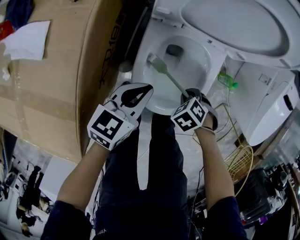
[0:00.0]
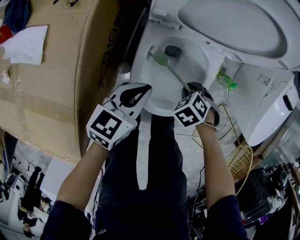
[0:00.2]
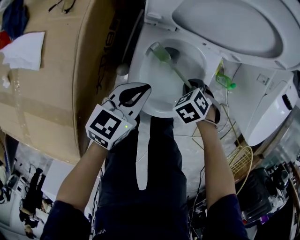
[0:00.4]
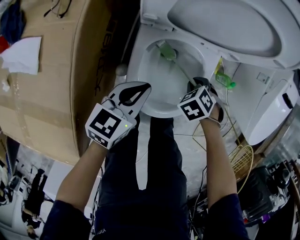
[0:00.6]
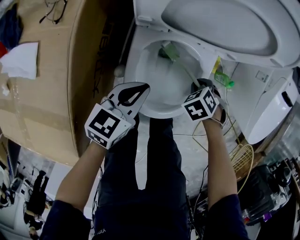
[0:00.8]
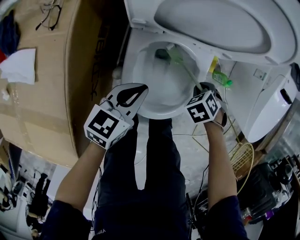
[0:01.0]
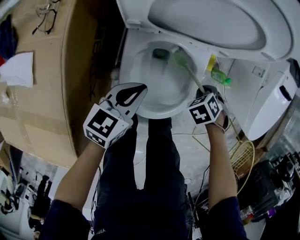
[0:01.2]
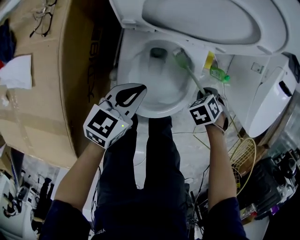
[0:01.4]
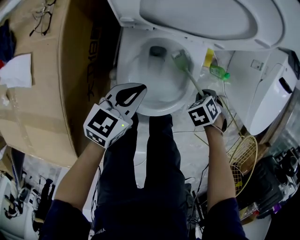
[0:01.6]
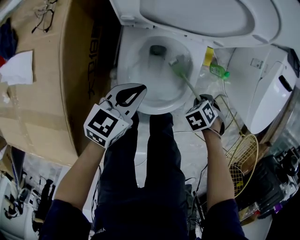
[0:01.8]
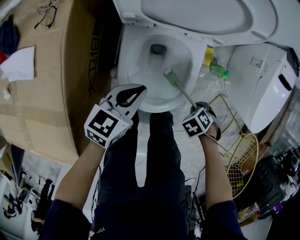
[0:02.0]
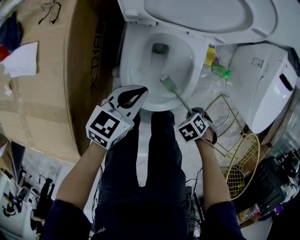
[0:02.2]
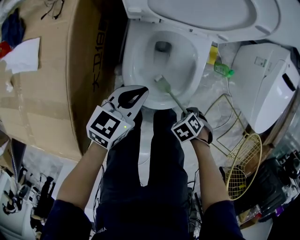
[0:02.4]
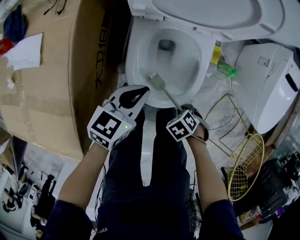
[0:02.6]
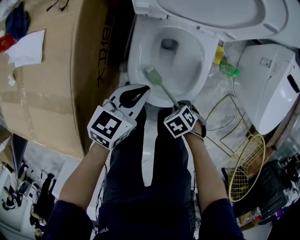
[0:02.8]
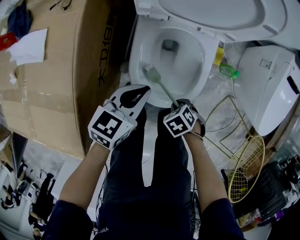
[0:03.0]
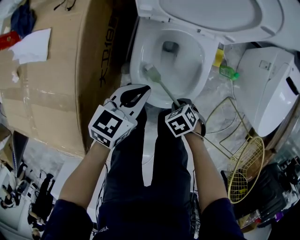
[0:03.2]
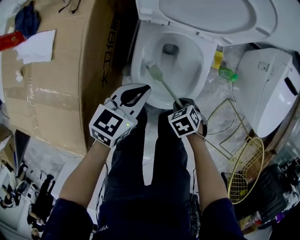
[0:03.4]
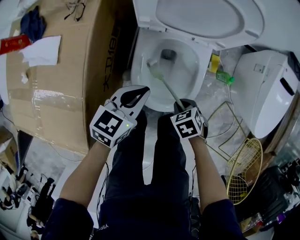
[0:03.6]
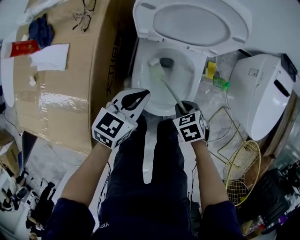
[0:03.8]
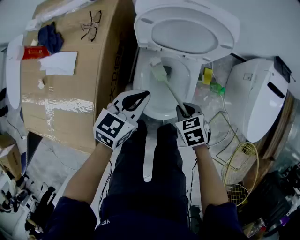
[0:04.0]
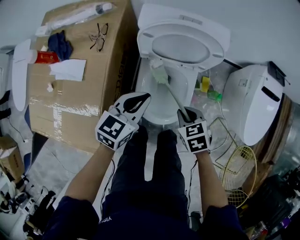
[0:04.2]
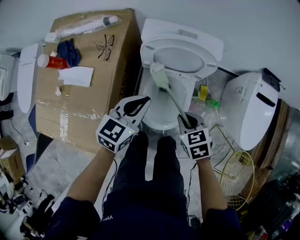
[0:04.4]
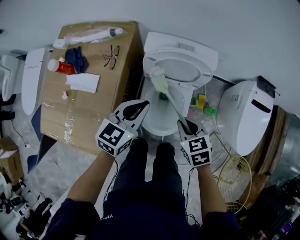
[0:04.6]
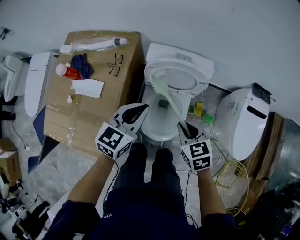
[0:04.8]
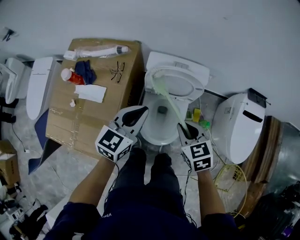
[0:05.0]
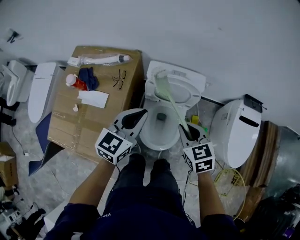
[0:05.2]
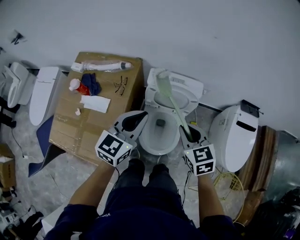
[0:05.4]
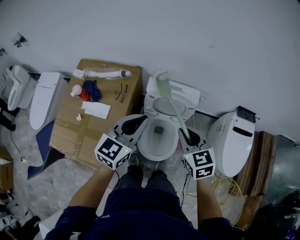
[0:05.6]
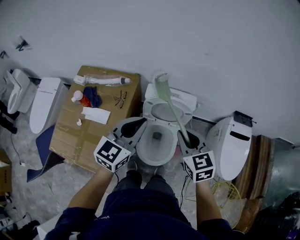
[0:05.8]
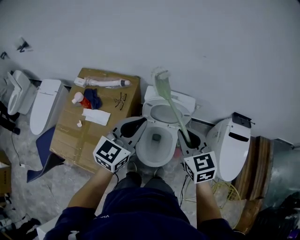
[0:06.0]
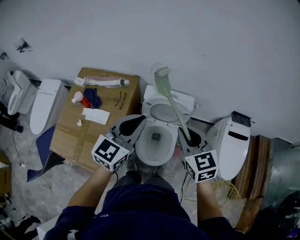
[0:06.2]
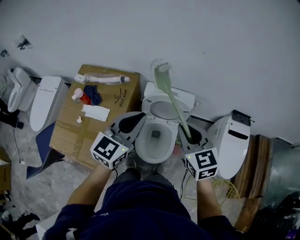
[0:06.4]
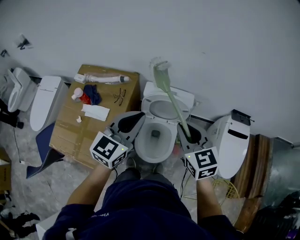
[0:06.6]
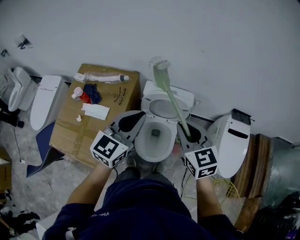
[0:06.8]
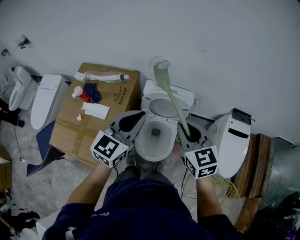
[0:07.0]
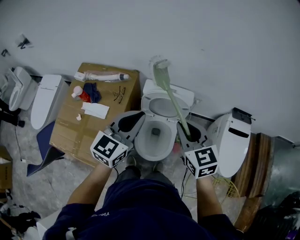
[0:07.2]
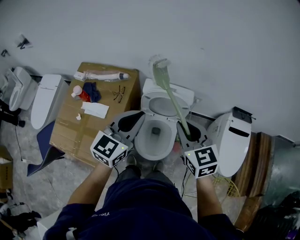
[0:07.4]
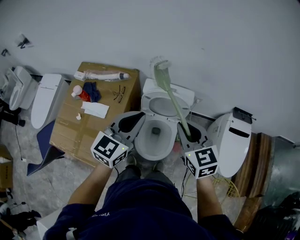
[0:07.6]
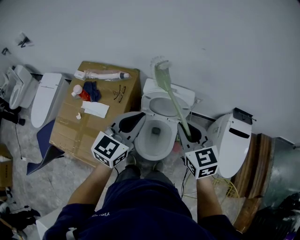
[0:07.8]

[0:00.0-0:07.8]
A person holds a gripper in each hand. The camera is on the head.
0:00.0 to 0:01.6: The right gripper changes place by roughly 15 cm, while the left gripper ends up approximately 5 cm from where it was.
0:01.6 to 0:03.2: The left gripper changes place by approximately 5 cm. The right gripper shifts by about 20 cm.
0:03.2 to 0:04.6: The two grippers go about 30 cm upward. The right gripper swivels about 40 degrees.
0:04.6 to 0:06.2: The grippers both shift upward by approximately 25 cm. The right gripper changes its angle by some 30 degrees, while the left gripper rotates roughly 20 degrees.
0:06.2 to 0:07.8: The grippers make only small movements.

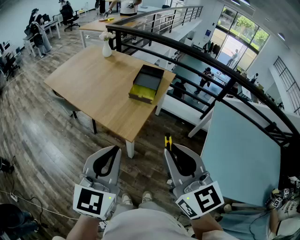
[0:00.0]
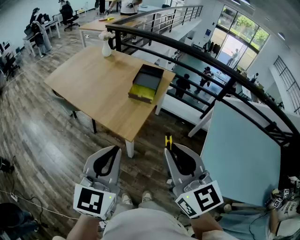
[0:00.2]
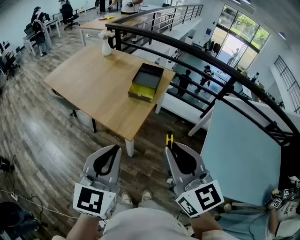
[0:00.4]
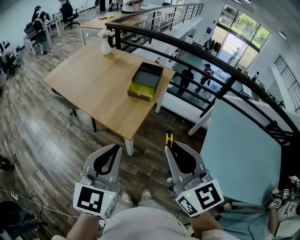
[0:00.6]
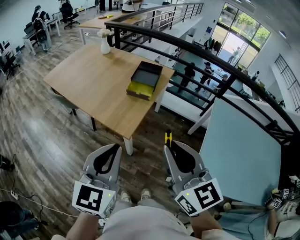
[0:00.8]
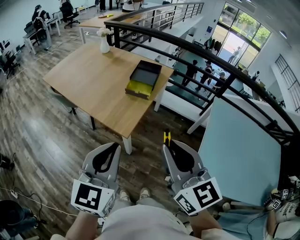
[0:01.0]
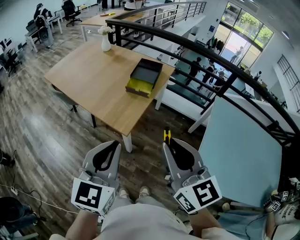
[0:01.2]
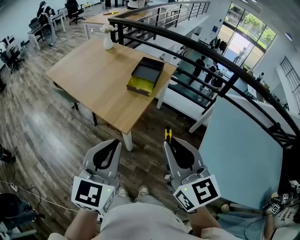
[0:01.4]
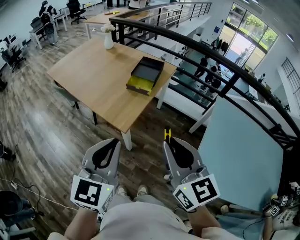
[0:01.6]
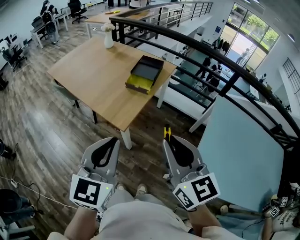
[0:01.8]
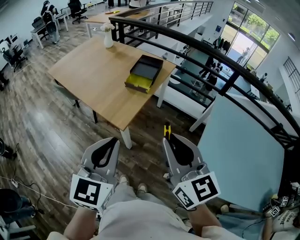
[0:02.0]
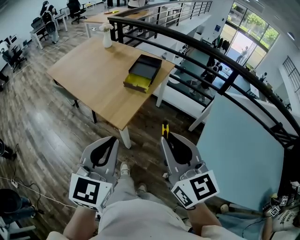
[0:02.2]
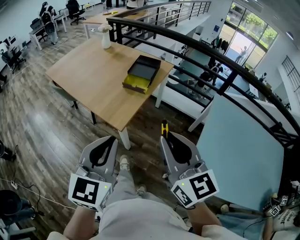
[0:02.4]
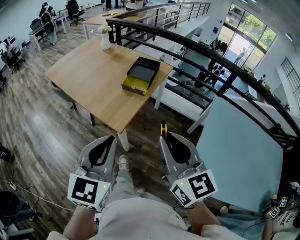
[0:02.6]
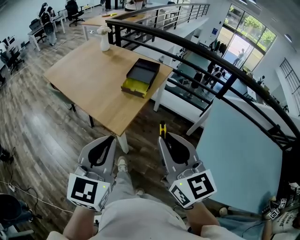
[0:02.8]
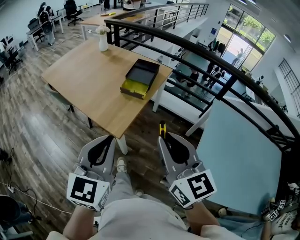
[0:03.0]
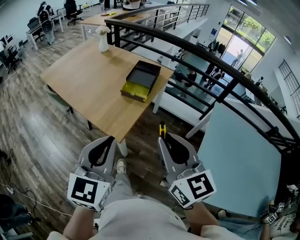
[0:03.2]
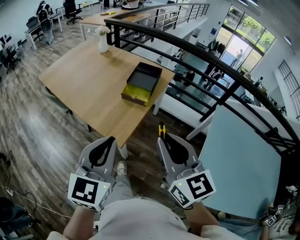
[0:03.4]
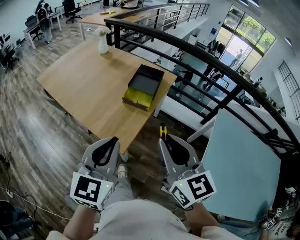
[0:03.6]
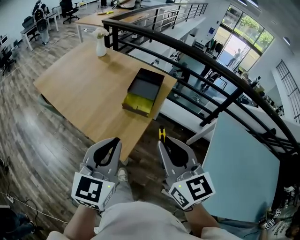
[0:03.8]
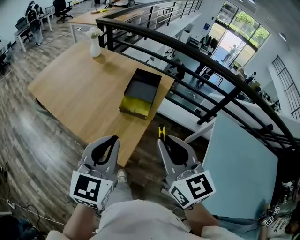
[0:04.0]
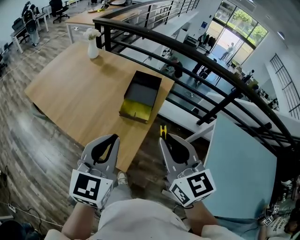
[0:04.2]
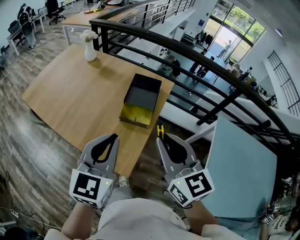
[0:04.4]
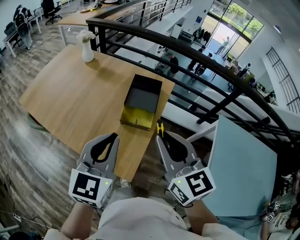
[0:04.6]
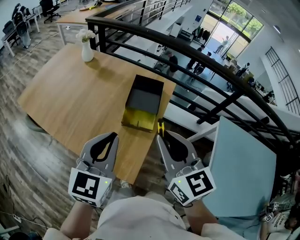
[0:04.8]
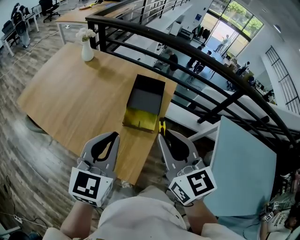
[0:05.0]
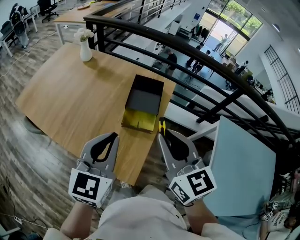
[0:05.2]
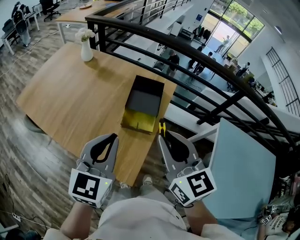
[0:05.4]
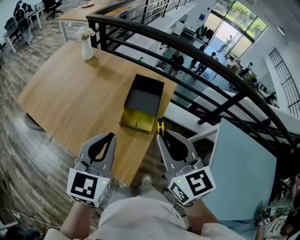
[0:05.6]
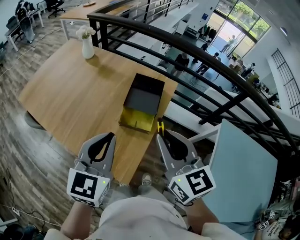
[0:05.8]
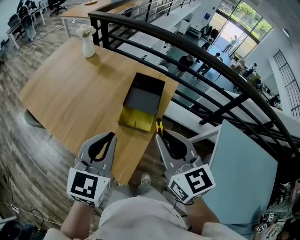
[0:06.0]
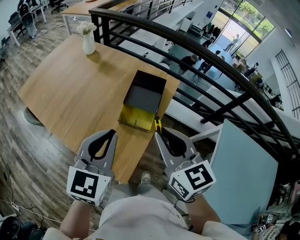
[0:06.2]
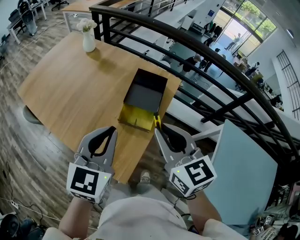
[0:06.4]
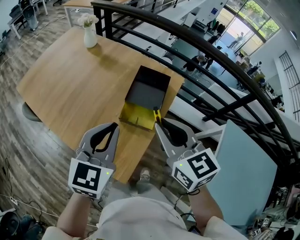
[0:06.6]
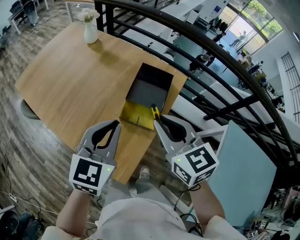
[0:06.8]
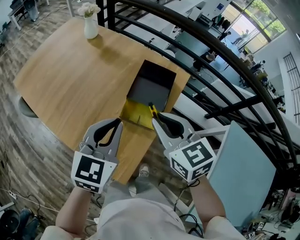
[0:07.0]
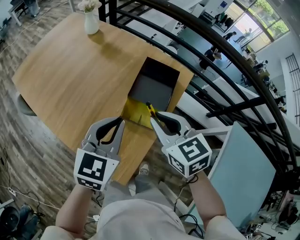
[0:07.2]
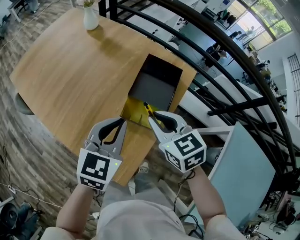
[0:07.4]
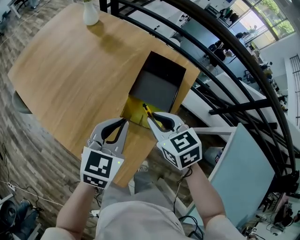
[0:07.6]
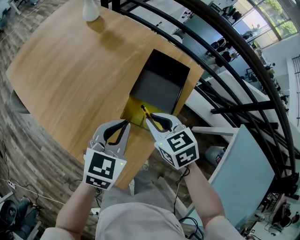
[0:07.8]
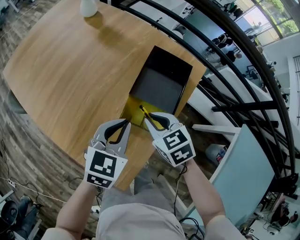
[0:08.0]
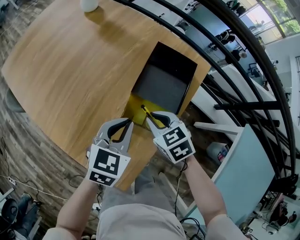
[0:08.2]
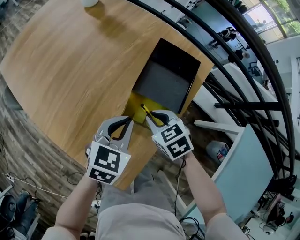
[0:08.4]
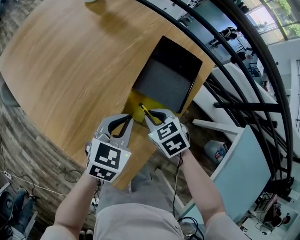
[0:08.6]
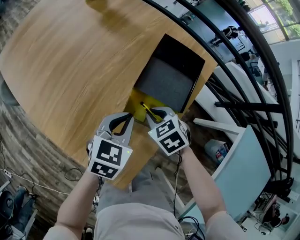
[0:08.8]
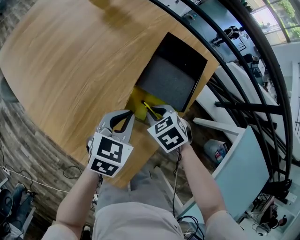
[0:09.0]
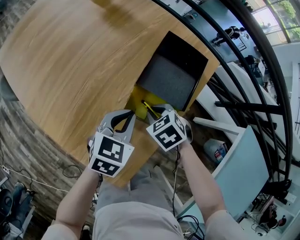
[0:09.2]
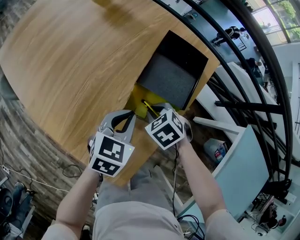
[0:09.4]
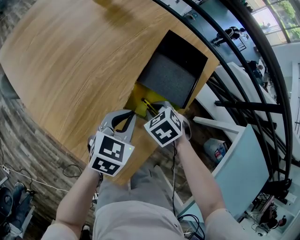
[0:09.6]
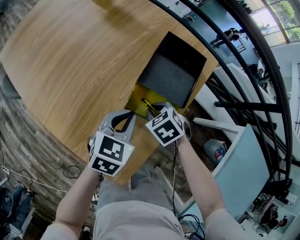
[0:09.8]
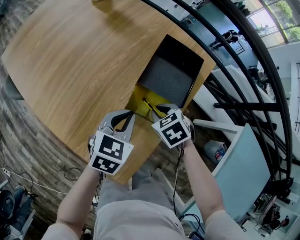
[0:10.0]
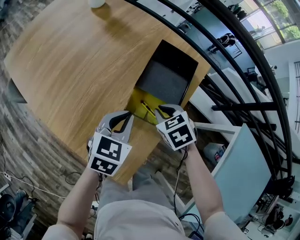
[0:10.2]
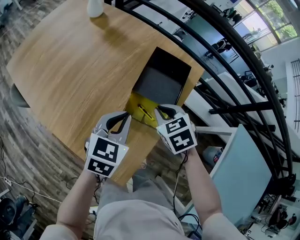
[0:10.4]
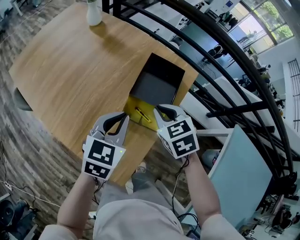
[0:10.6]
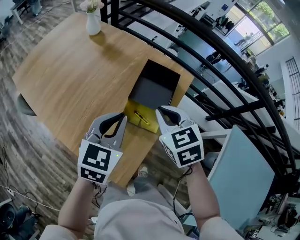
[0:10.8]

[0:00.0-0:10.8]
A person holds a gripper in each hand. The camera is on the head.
0:00.0 to 0:01.6: Both grippers travel together to the right, some 10 cm.
0:01.6 to 0:03.0: The grippers stay close to where they were, moving slightly.
0:03.0 to 0:04.6: The grippers both shift forward by approximately 35 cm.
0:04.6 to 0:06.2: The grippers both shift forward by some 5 cm.
0:06.2 to 0:07.8: Both grippers move downward and forward, roughly 30 cm. The right gripper turns by some 30 degrees.
0:07.8 to 0:09.2: Both grippers move downward, roughly 15 cm. The right gripper rotates about 30 degrees.
0:09.2 to 0:10.8: Both grippers travel together upward, roughly 25 cm. The right gripper swivels some 30 degrees.

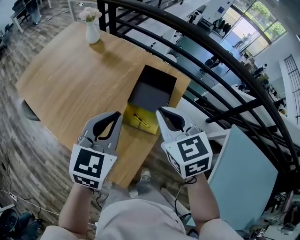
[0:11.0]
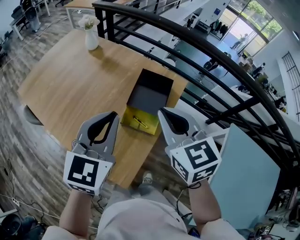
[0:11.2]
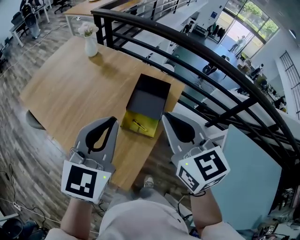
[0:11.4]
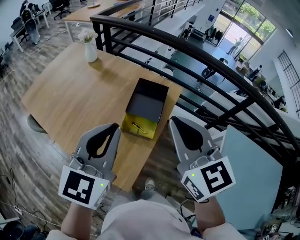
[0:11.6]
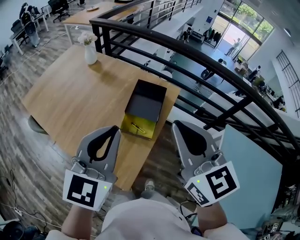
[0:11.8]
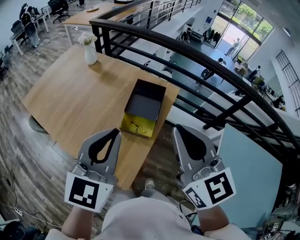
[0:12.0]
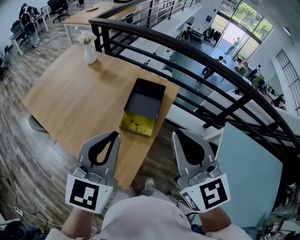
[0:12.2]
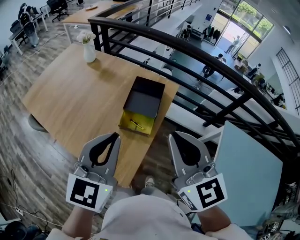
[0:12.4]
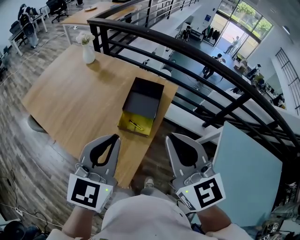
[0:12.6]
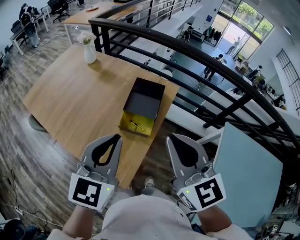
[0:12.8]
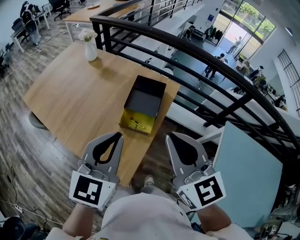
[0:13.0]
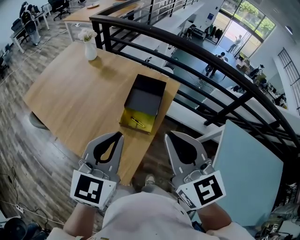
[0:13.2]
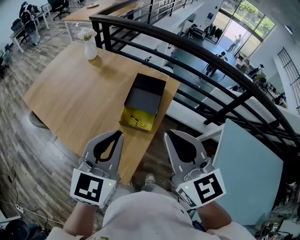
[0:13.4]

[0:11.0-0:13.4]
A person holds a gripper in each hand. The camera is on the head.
0:11.0 to 0:12.2: The right gripper travels upward and backward by about 20 cm, and changes its angle by roughly 30 degrees, while the left gripper moves backward and upward, some 15 cm.
0:12.2 to 0:13.4: The grippers stay close to where they were, moving slightly.

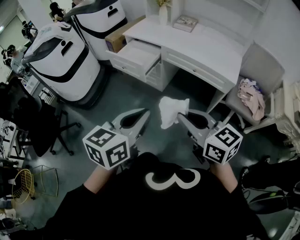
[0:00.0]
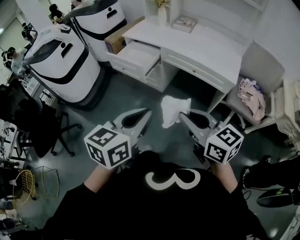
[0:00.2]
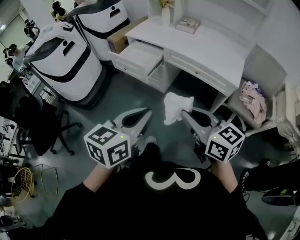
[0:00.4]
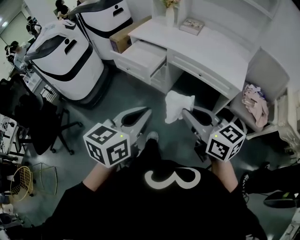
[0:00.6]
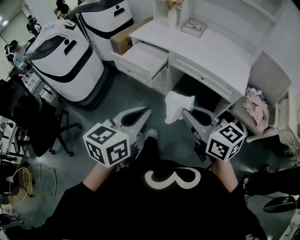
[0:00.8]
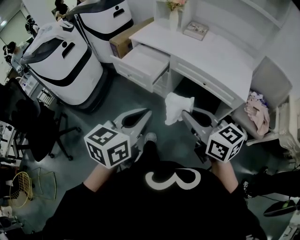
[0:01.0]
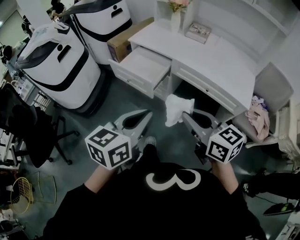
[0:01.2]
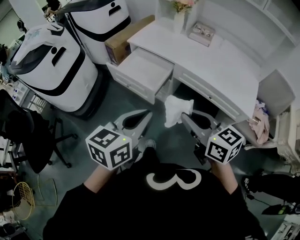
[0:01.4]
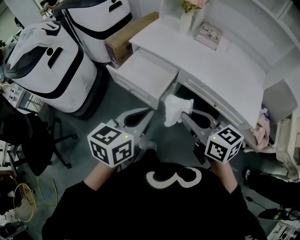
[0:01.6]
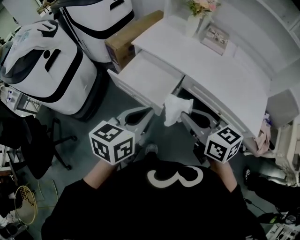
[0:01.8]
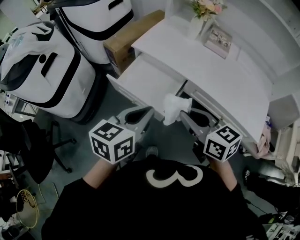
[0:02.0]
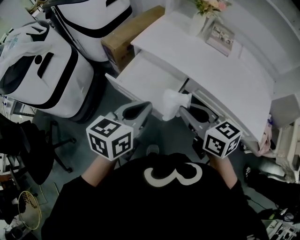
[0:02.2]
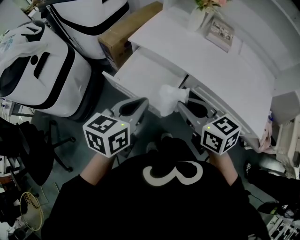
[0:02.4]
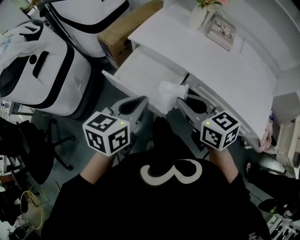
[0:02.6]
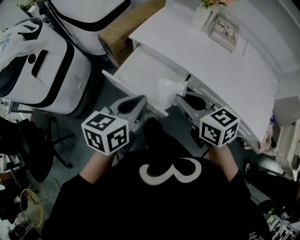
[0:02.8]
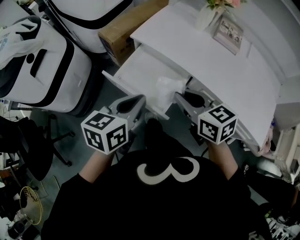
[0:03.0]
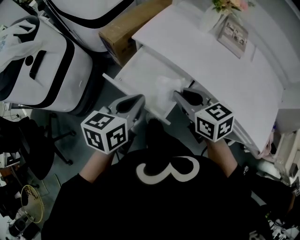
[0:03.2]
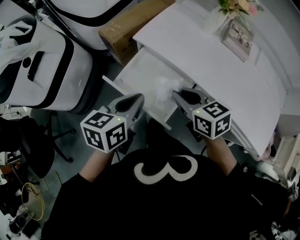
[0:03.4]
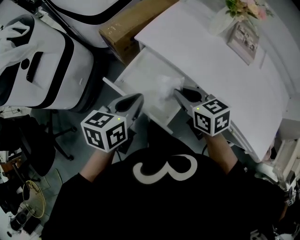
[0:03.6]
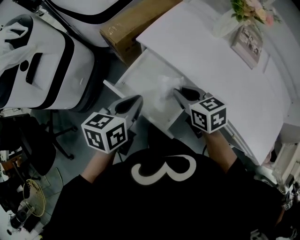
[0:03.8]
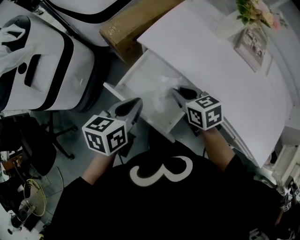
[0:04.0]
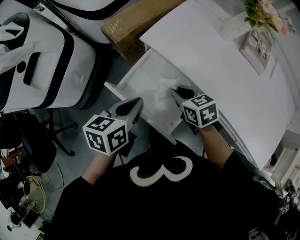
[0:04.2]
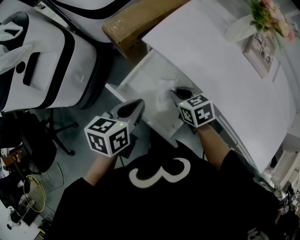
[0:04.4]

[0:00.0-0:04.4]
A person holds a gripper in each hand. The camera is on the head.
0:00.0 to 0:01.4: Both grippers move forward, roughly 25 cm.
0:01.4 to 0:03.0: Both grippers travel together forward, some 30 cm.
0:03.0 to 0:04.4: The left gripper shifts some 15 cm forward and downward. Meanwhile the right gripper heads downward and forward, covering roughly 25 cm, and changes its angle by roughly 20 degrees.
